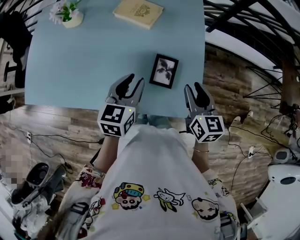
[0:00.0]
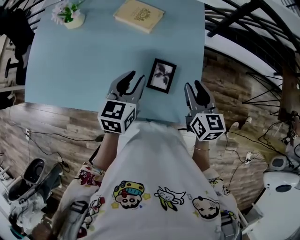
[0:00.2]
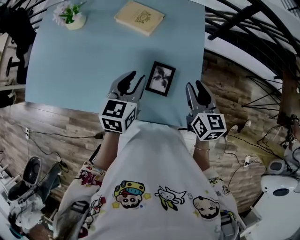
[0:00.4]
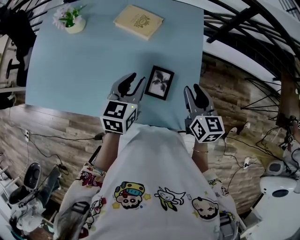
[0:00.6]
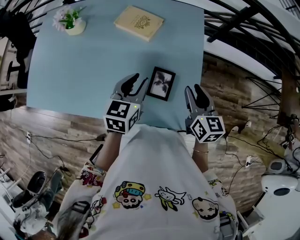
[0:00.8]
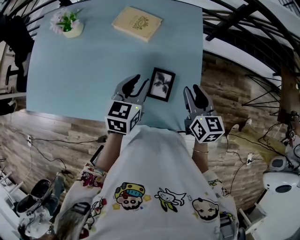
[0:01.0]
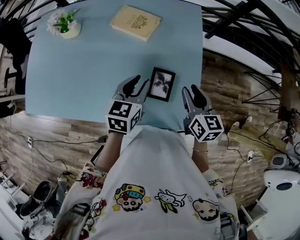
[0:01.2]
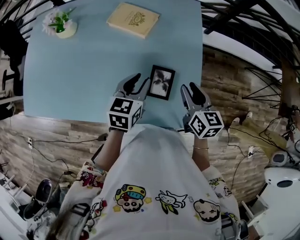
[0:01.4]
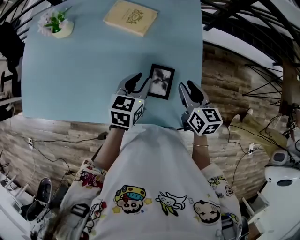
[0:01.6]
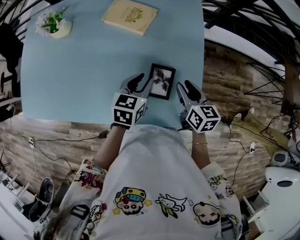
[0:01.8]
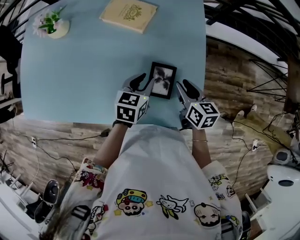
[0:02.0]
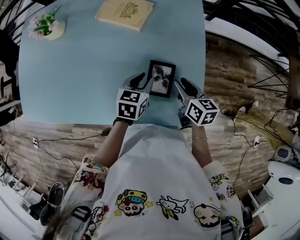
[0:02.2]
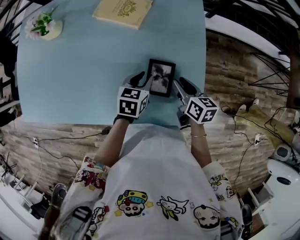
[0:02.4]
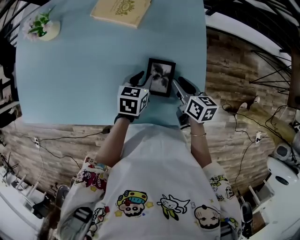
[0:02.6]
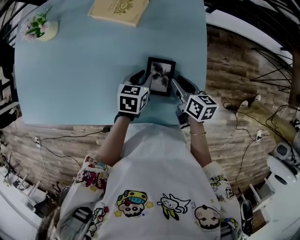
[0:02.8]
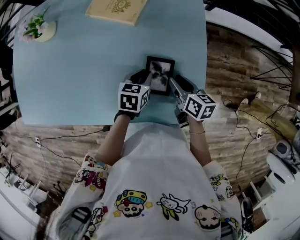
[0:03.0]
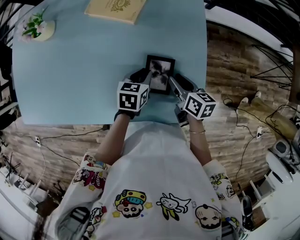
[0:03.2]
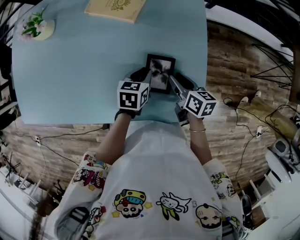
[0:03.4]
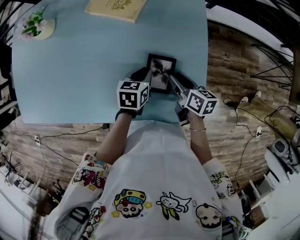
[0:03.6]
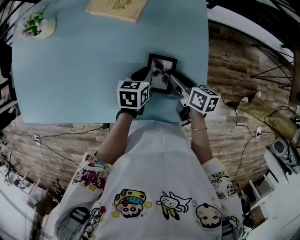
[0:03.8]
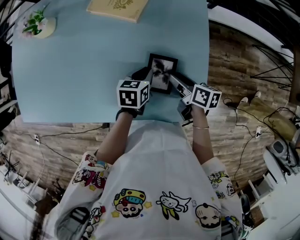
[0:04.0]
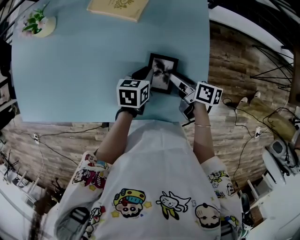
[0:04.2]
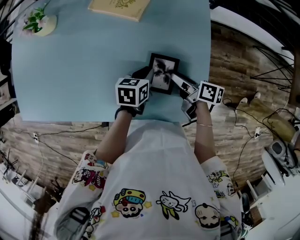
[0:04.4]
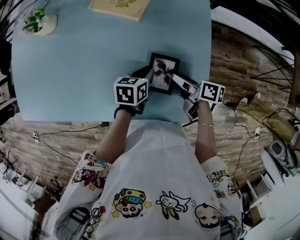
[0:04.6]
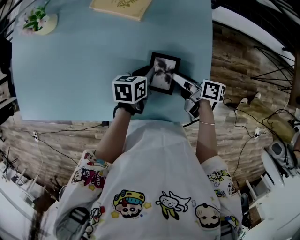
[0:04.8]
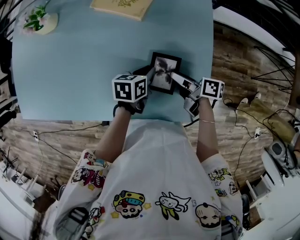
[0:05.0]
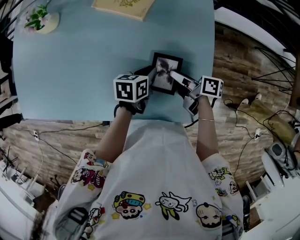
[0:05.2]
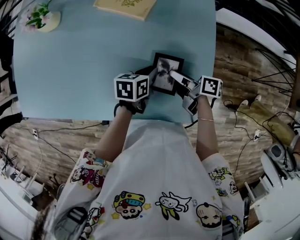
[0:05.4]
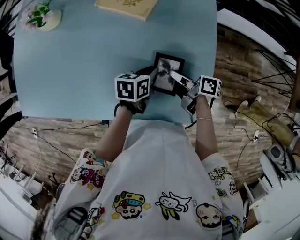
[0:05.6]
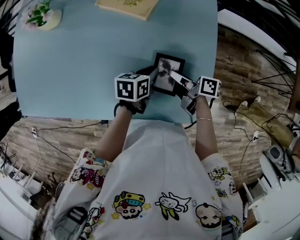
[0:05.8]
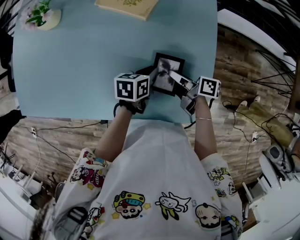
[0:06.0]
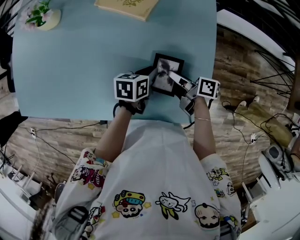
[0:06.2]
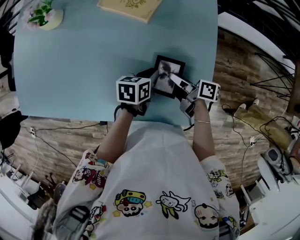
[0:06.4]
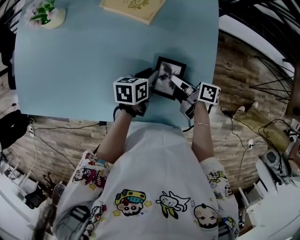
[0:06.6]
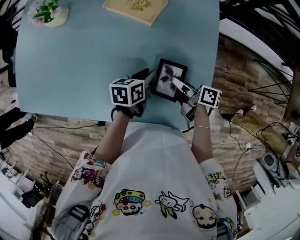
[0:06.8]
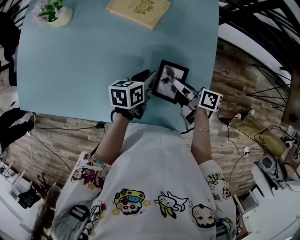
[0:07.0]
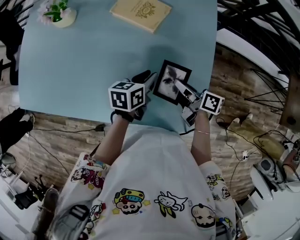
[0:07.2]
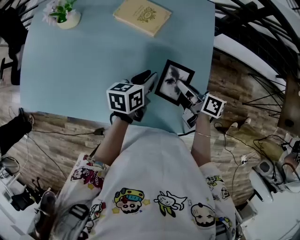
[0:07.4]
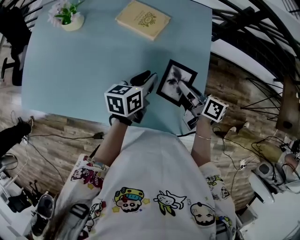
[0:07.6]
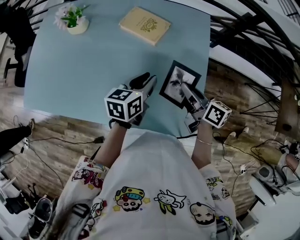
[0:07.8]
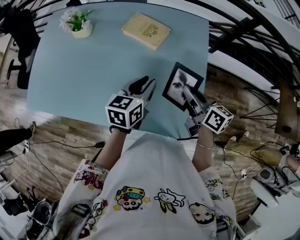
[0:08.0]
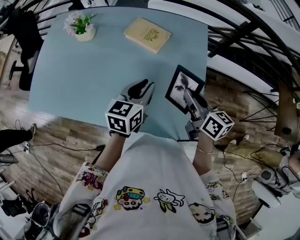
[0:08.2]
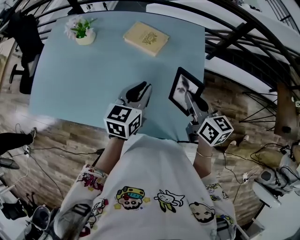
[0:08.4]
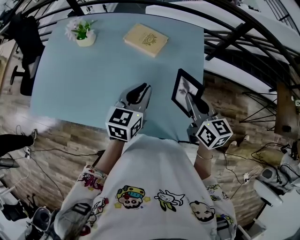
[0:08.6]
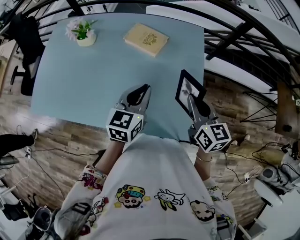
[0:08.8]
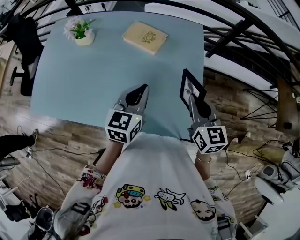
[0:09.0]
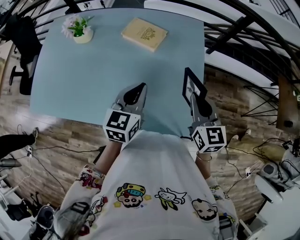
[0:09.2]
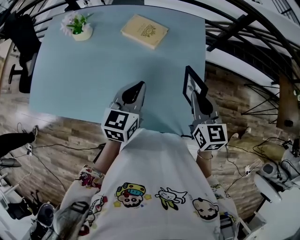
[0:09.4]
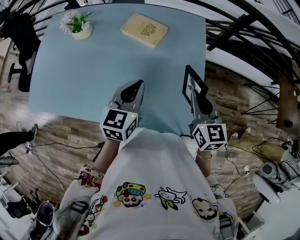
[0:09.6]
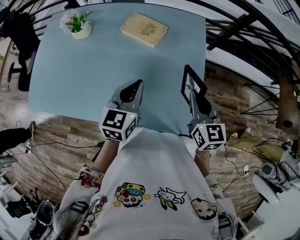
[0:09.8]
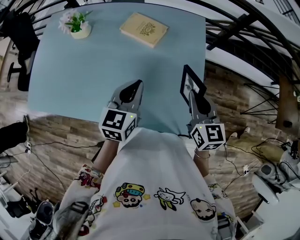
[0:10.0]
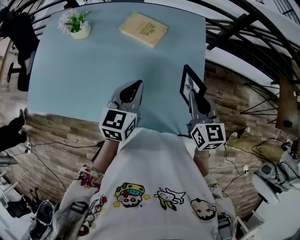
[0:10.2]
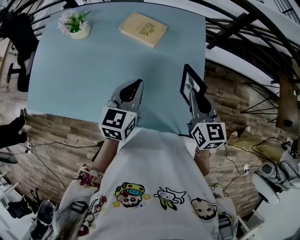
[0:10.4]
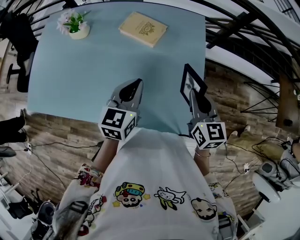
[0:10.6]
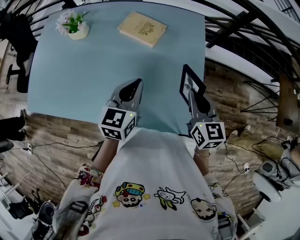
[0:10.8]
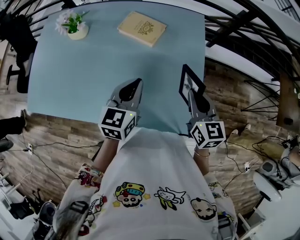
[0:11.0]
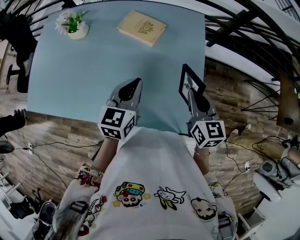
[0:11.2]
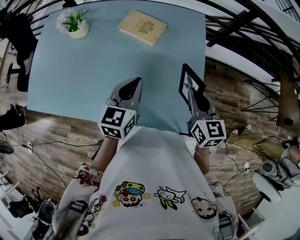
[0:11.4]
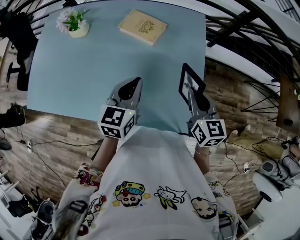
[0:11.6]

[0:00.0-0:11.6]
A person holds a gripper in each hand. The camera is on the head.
0:00.0 to 0:01.4: Both grippers move forward, about 5 cm.
0:01.4 to 0:02.8: Both grippers move downward, some 15 cm. The right gripper changes its angle by roughly 20 degrees.
0:02.8 to 0:04.4: The right gripper rotates roughly 30 degrees.
0:04.4 to 0:05.8: The right gripper closes up.
0:05.8 to 0:07.2: Both grippers move upward, some 5 cm.
0:07.2 to 0:08.8: The two grippers go some 20 cm upward. The left gripper rotates roughly 40 degrees, while the right gripper rolls counterclockwise, seen from behind, by approximately 50 degrees.
0:08.8 to 0:11.6: The grippers stay close to where they were, moving slightly.

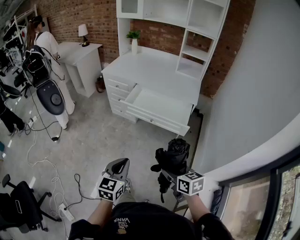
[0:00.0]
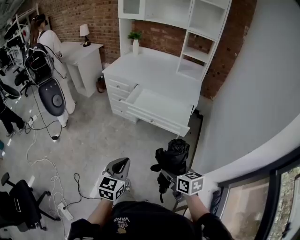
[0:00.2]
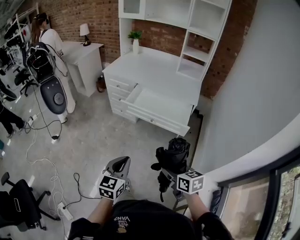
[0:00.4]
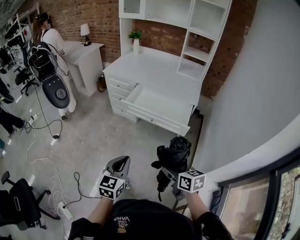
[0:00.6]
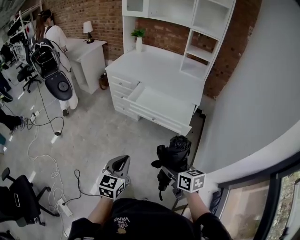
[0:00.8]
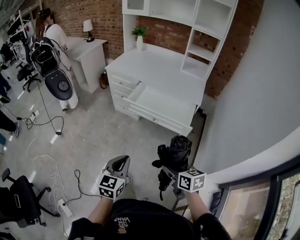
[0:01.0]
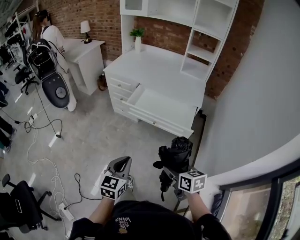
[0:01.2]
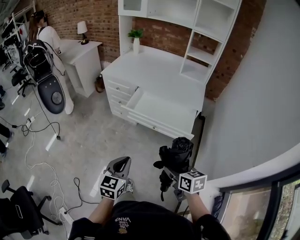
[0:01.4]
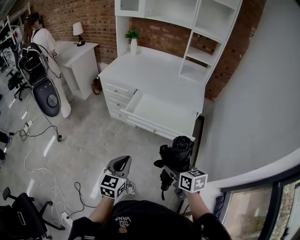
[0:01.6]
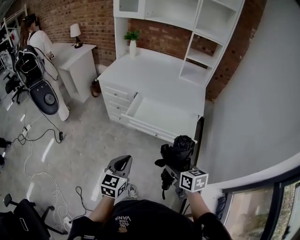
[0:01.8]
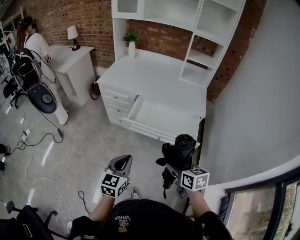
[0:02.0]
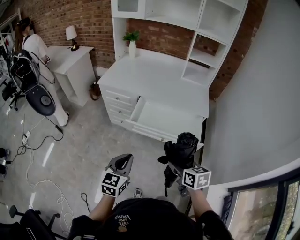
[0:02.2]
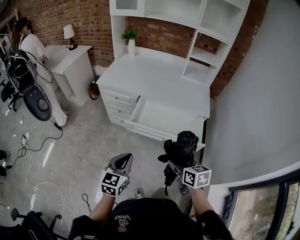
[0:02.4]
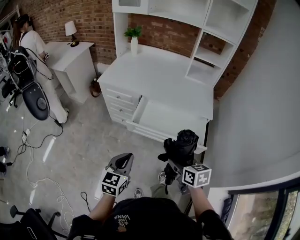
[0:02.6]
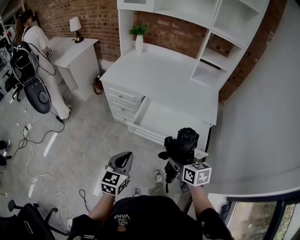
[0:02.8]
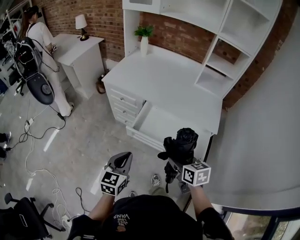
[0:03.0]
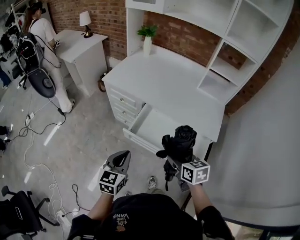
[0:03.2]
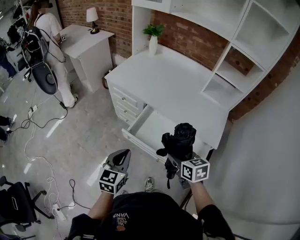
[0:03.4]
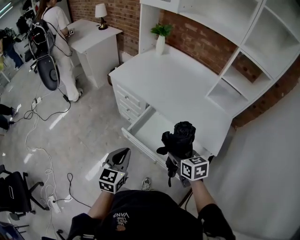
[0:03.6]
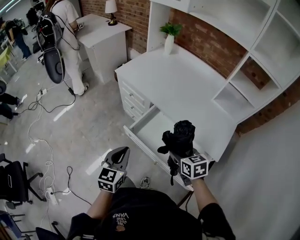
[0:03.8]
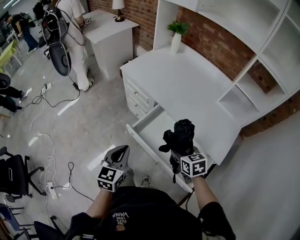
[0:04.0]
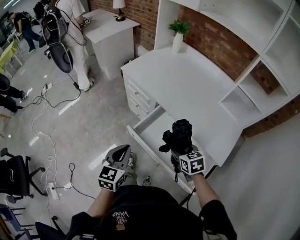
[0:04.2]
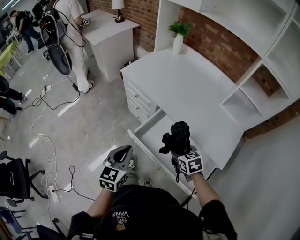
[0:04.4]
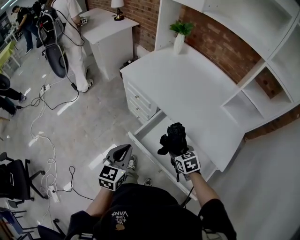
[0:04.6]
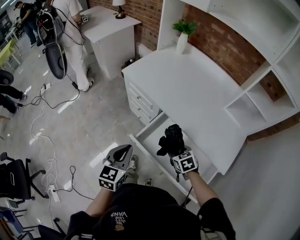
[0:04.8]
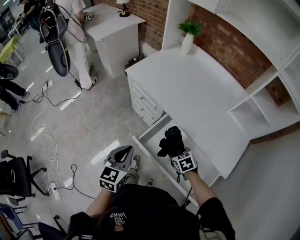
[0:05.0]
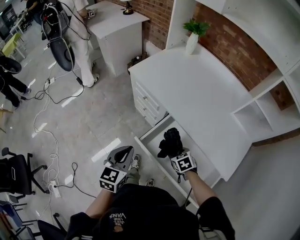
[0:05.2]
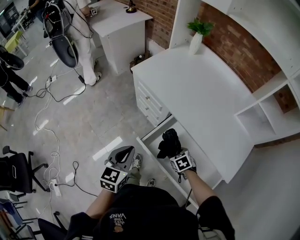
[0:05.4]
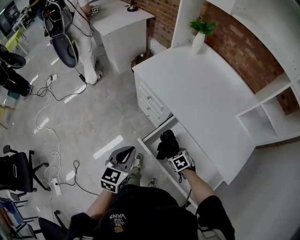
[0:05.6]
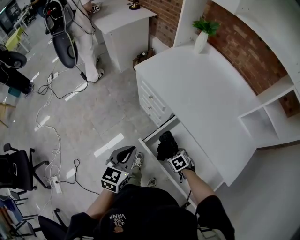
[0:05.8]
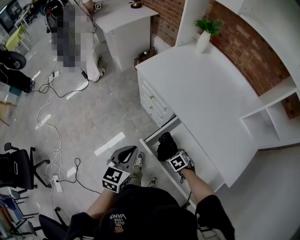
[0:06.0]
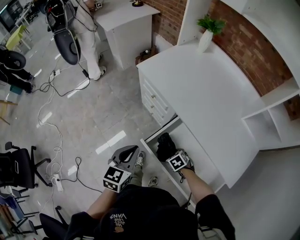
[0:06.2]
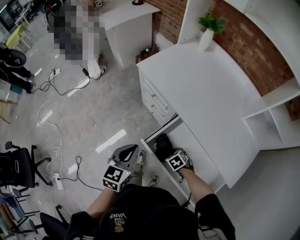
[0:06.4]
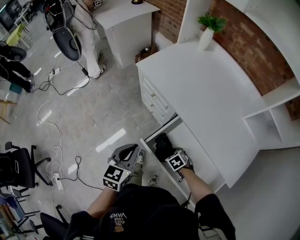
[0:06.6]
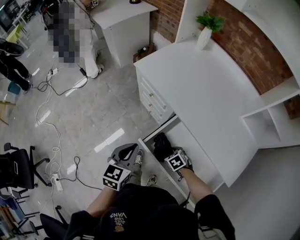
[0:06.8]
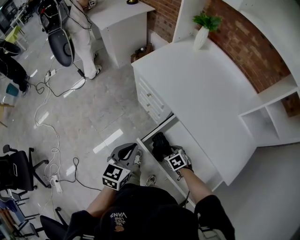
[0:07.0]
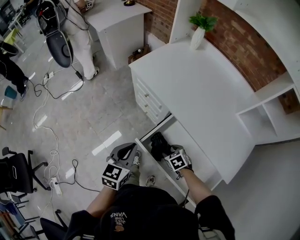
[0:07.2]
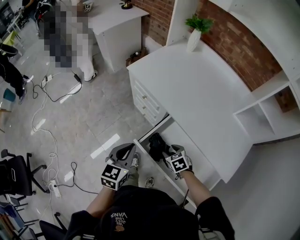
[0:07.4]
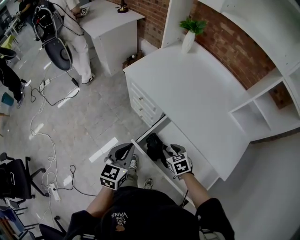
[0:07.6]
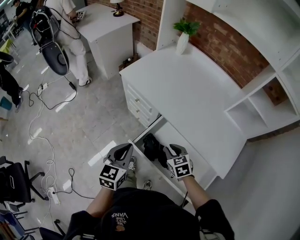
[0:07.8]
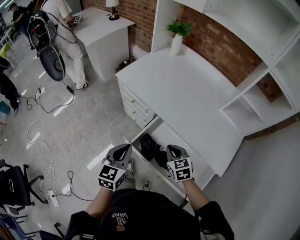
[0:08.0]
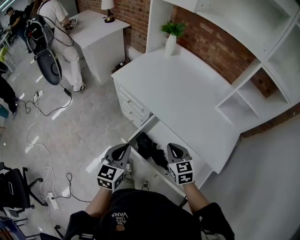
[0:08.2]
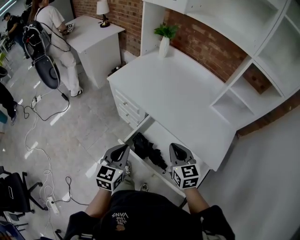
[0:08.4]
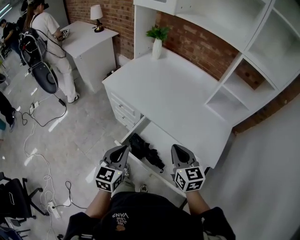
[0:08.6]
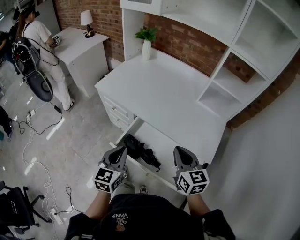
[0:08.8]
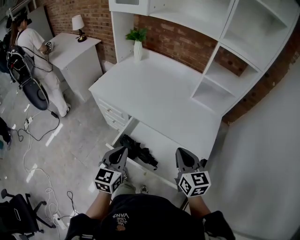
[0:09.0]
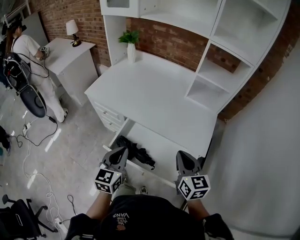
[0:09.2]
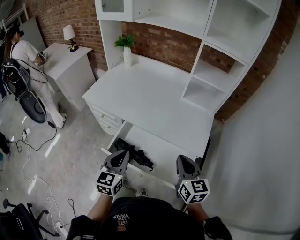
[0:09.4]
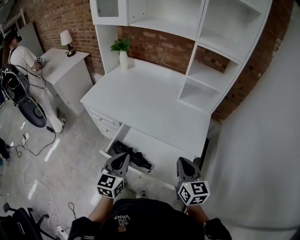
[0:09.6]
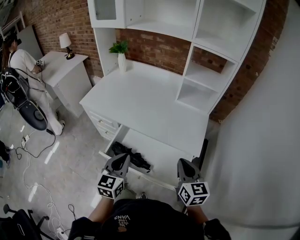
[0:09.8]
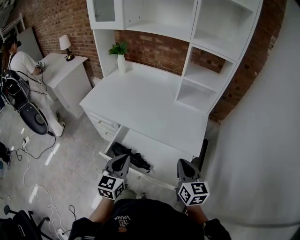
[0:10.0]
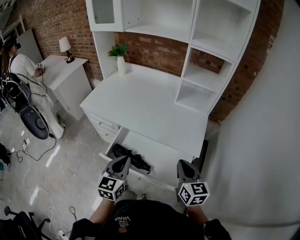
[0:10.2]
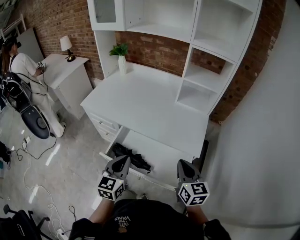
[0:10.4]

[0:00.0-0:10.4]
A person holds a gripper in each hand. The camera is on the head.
0:00.0 to 0:01.4: The grippers both shift forward by some 10 cm.
0:01.4 to 0:03.0: The two grippers go some 25 cm forward.
0:03.0 to 0:04.4: The left gripper shifts some 15 cm forward and to the right. Meanwhile the right gripper moves forward and downward, about 20 cm, and rotates approximately 30 degrees.
0:04.4 to 0:06.0: The left gripper travels forward by roughly 10 cm; the right gripper moves downward, some 20 cm, and rotates approximately 30 degrees.
0:06.0 to 0:07.4: The right gripper shifts some 5 cm upward.
0:07.4 to 0:09.0: The left gripper moves to the right, upward and backward, roughly 15 cm. Meanwhile the right gripper is displaced upward, to the right and backward by approximately 35 cm, points its fingers roughly 40 degrees further upward, and closes.
0:09.0 to 0:10.4: The left gripper shifts roughly 5 cm to the right, while the right gripper heads to the right and backward, covering roughly 10 cm.

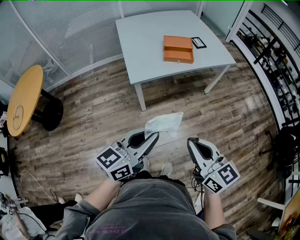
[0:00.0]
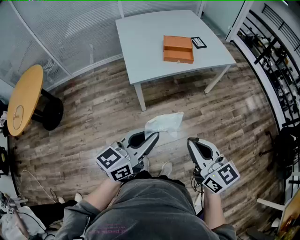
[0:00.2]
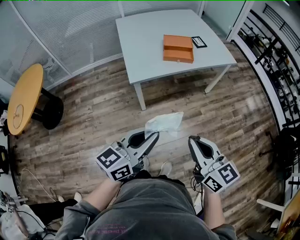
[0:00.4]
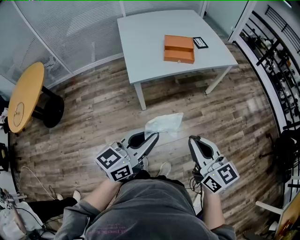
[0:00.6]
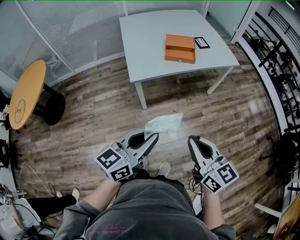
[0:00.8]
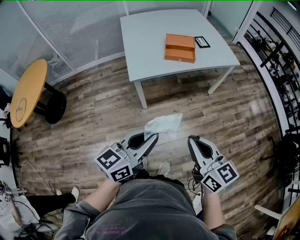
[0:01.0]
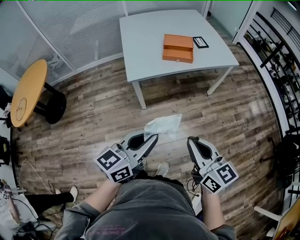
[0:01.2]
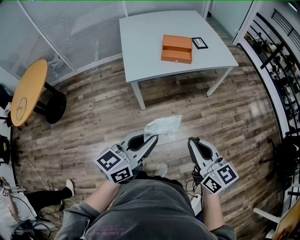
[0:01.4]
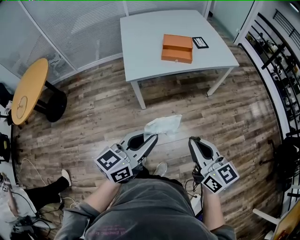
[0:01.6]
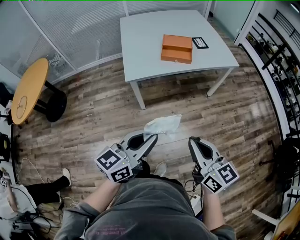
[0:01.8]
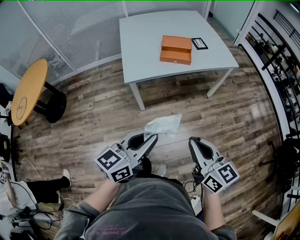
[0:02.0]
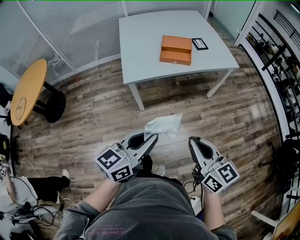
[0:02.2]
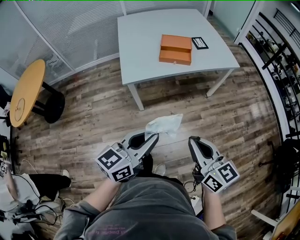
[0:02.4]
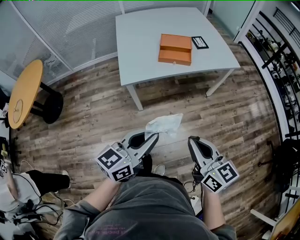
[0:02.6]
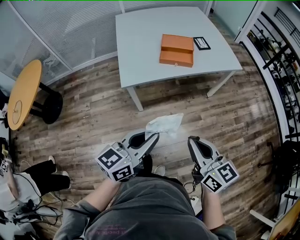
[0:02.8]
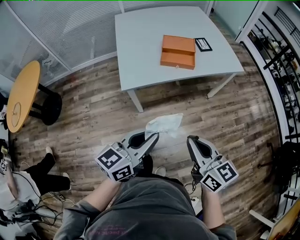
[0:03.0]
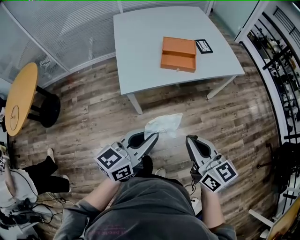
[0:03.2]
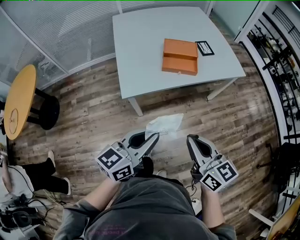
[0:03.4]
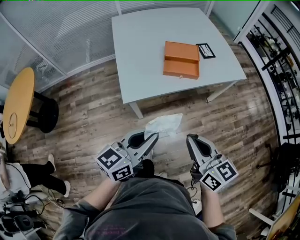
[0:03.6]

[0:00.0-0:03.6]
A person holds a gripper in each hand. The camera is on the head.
0:00.0 to 0:01.8: Both grippers move to the right, approximately 10 cm.
0:01.8 to 0:03.6: The grippers both shift forward by approximately 25 cm.
